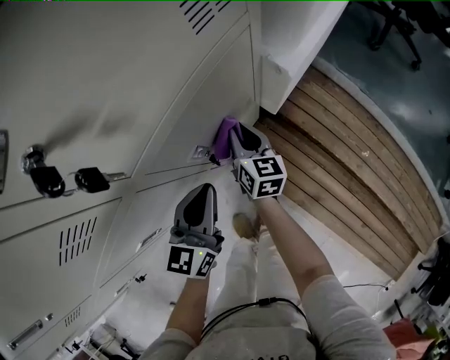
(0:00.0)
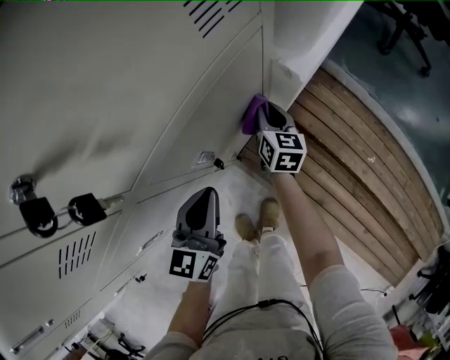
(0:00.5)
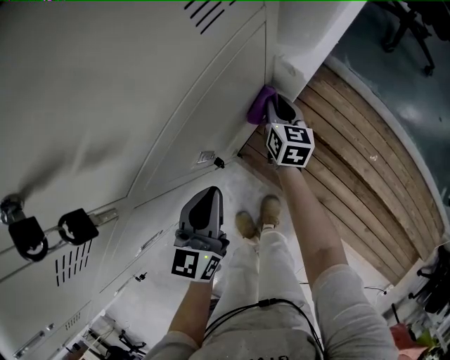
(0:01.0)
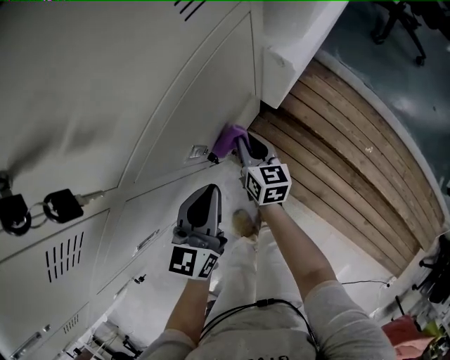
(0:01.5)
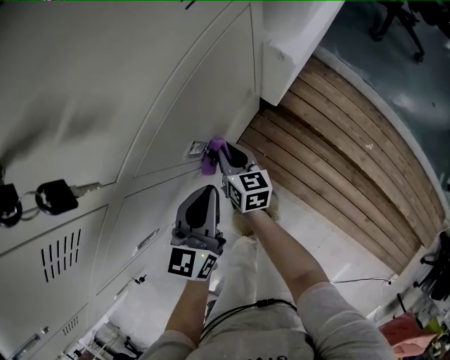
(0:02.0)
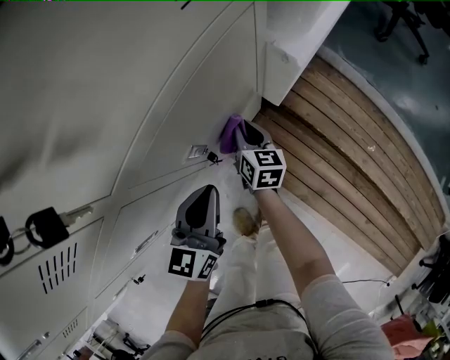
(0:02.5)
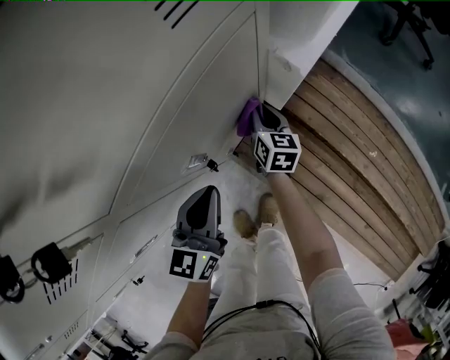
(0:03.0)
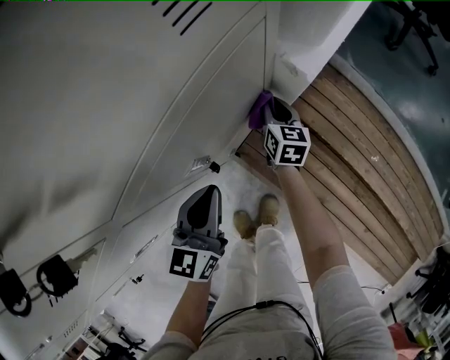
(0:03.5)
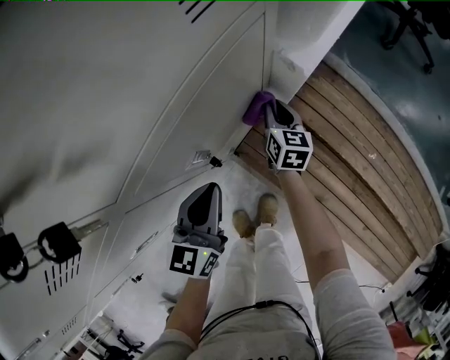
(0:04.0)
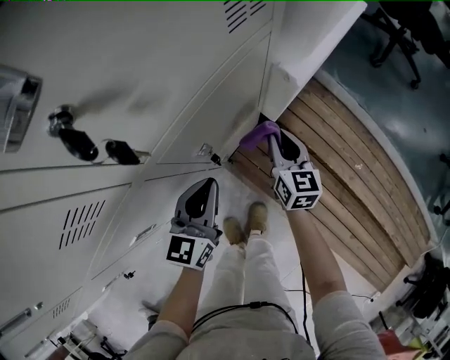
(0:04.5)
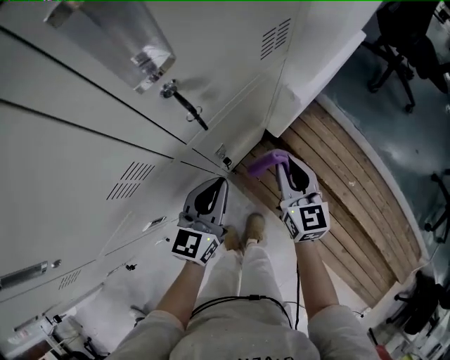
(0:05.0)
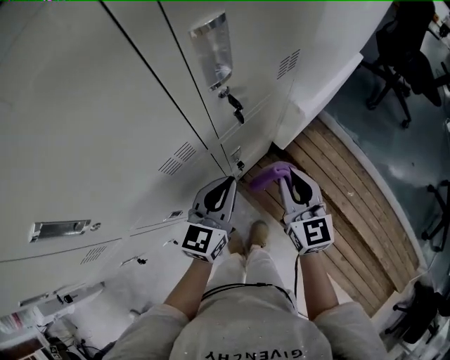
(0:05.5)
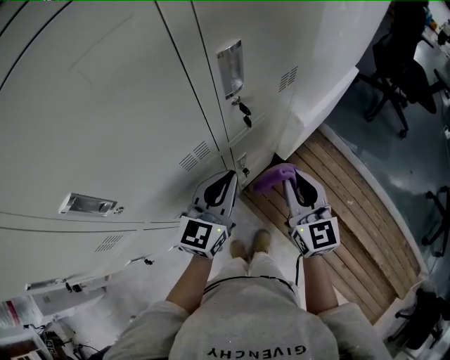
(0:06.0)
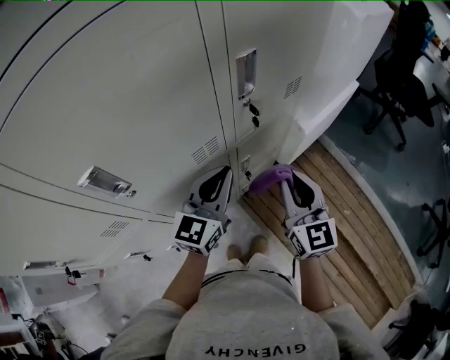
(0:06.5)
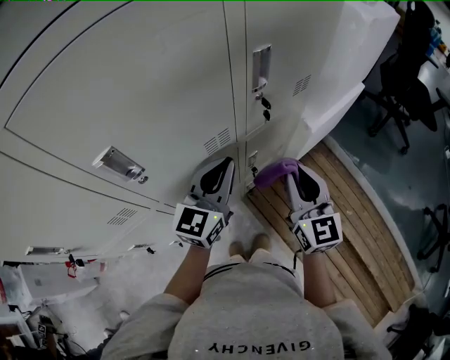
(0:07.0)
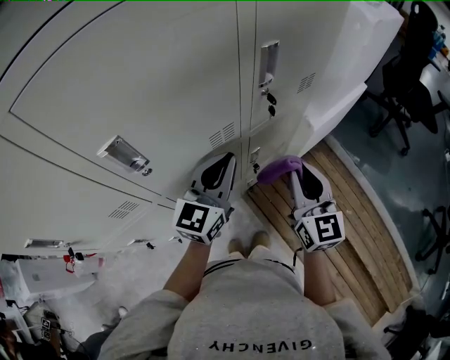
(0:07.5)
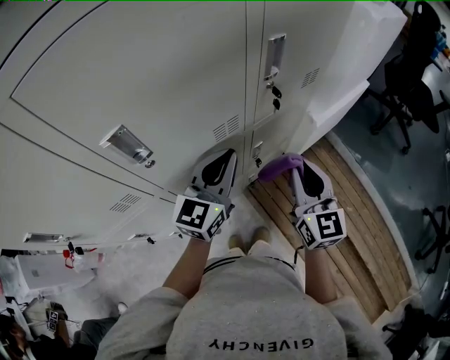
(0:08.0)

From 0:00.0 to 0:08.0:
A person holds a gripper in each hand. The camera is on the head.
From 0:00.0 to 0:02.0: The right gripper goes approximately 10 cm downward and backward.
From 0:02.0 to 0:04.0: The right gripper heads to the right and forward, covering roughly 20 cm.
From 0:04.0 to 0:06.0: The left gripper goes some 25 cm upward, while the right gripper is displaced upward and backward by roughly 50 cm, and turns by about 40 degrees.
From 0:06.0 to 0:08.0: The left gripper is displaced to the left and upward by about 10 cm; the right gripper moves roughly 5 cm.

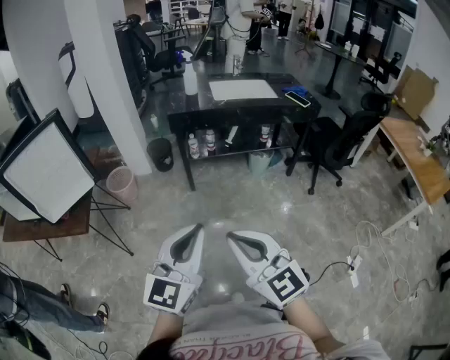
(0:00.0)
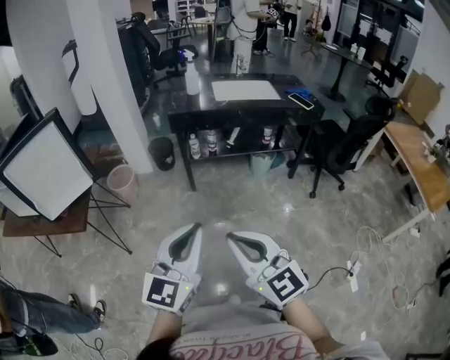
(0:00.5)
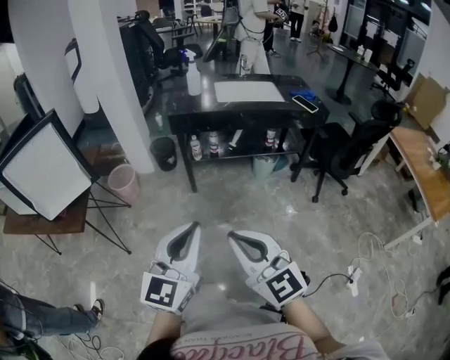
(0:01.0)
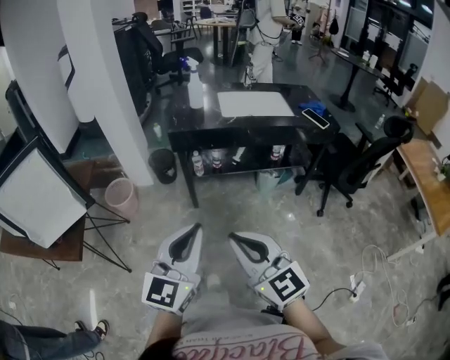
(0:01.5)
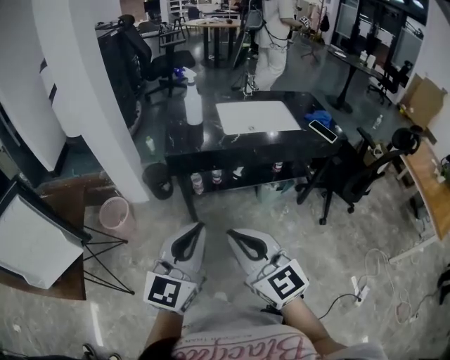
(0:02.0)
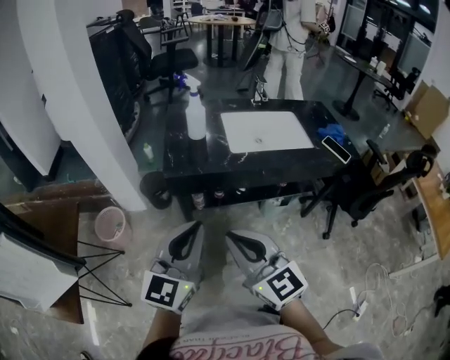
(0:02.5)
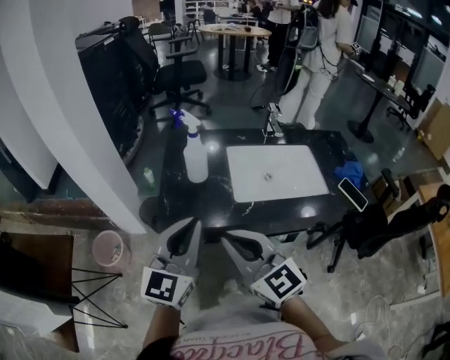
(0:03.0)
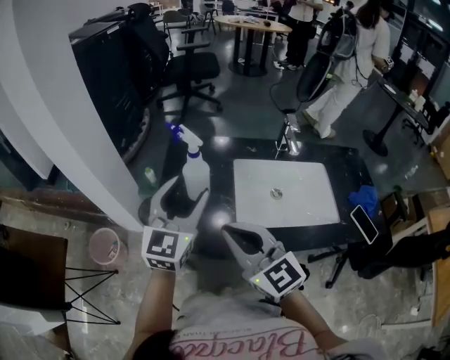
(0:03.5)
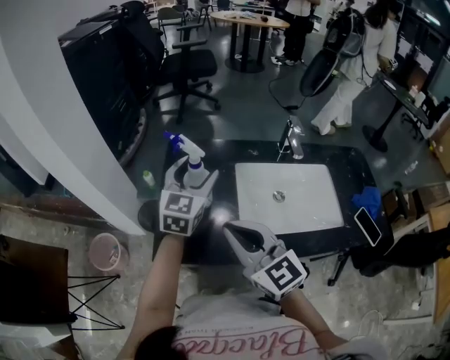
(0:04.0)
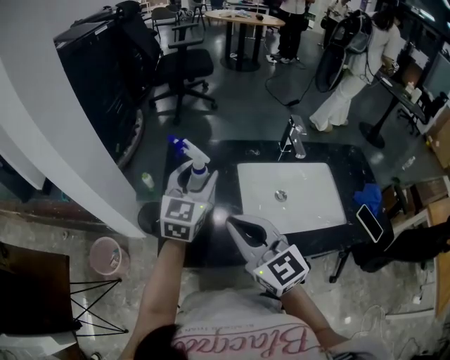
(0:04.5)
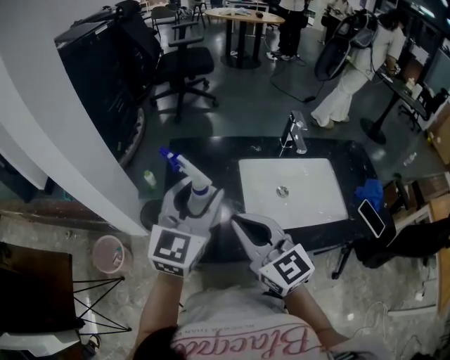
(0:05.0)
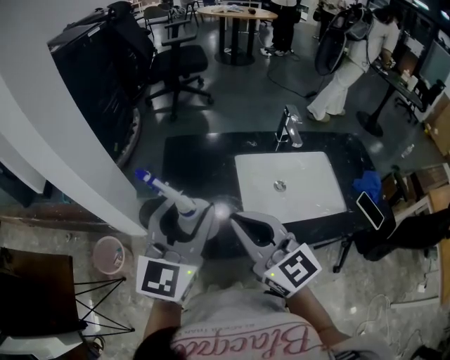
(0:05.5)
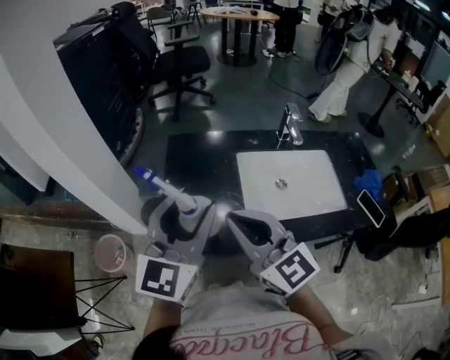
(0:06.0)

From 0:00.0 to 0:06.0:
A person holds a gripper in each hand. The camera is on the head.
From 0:00.0 to 0:02.0: The two grippers go some 30 cm forward.
From 0:02.0 to 0:04.0: The two grippers travel together, forward, about 50 cm. The left gripper opens its fingers.
From 0:04.0 to 0:06.0: The left gripper is displaced backward and upward by roughly 20 cm. The right gripper shifts by about 5 cm.

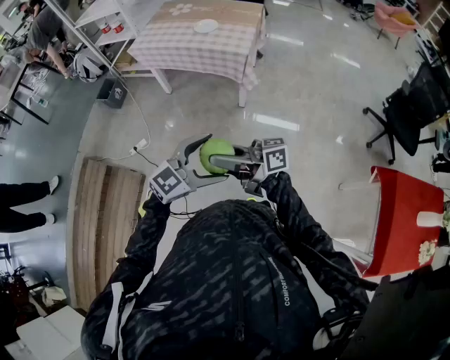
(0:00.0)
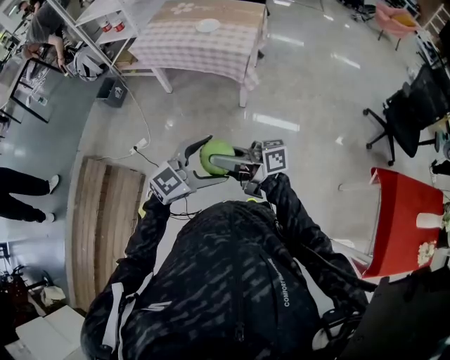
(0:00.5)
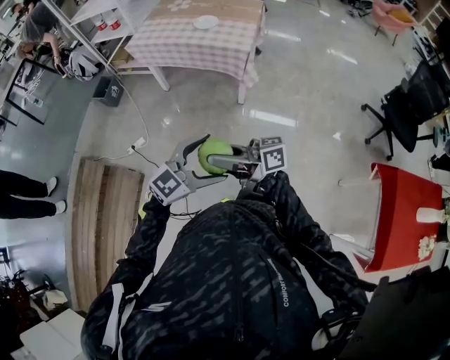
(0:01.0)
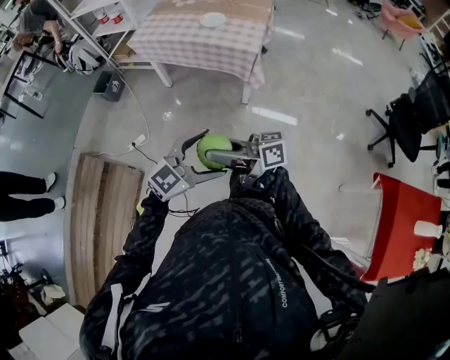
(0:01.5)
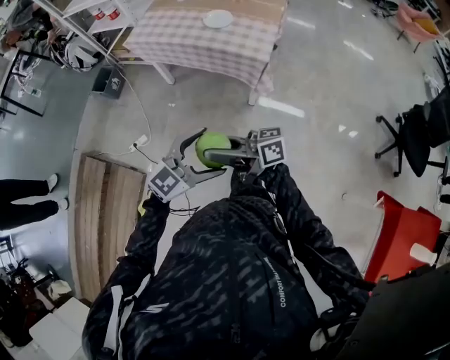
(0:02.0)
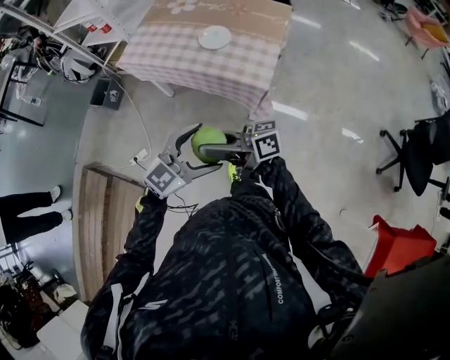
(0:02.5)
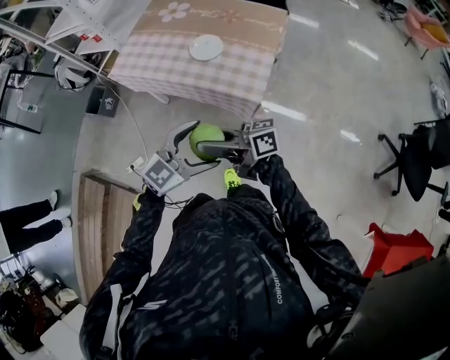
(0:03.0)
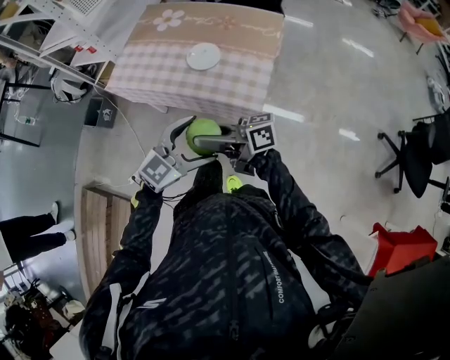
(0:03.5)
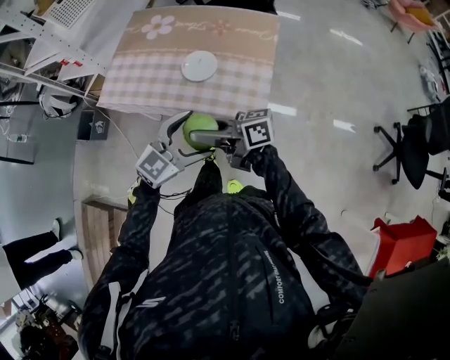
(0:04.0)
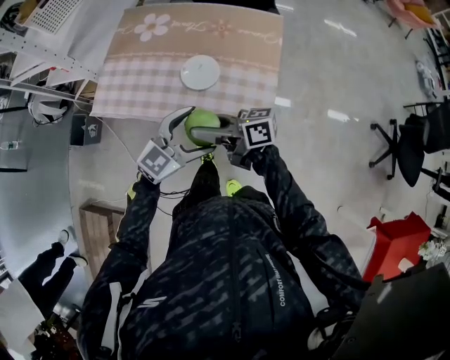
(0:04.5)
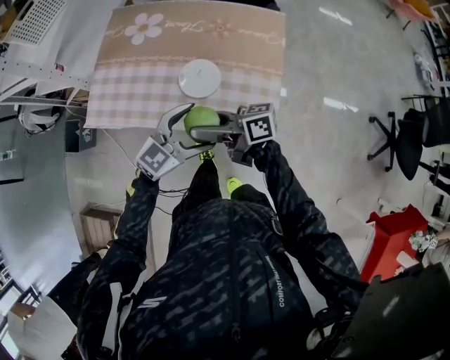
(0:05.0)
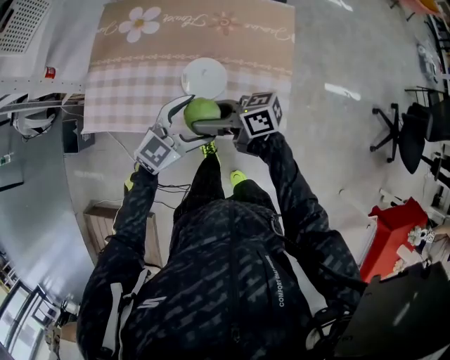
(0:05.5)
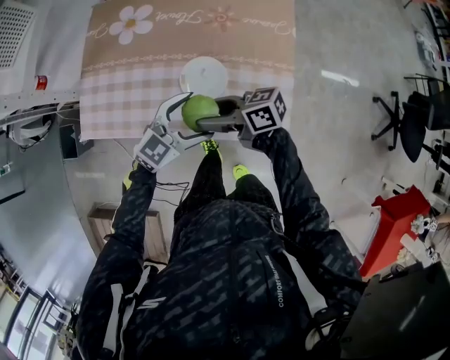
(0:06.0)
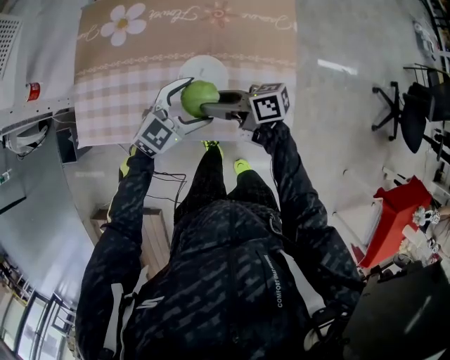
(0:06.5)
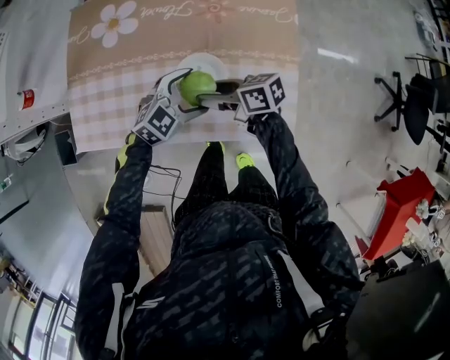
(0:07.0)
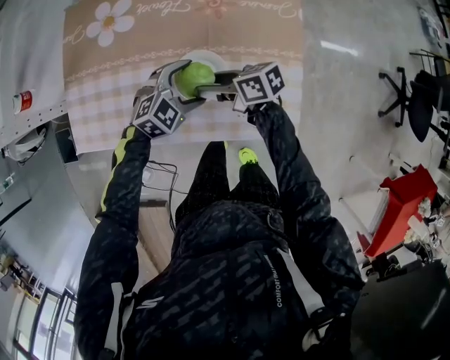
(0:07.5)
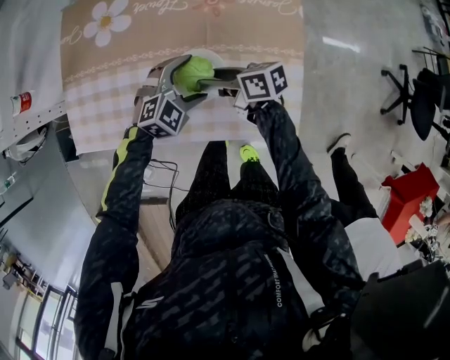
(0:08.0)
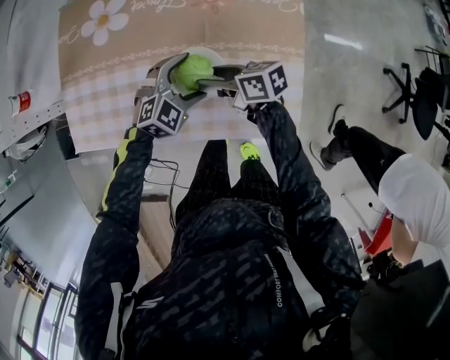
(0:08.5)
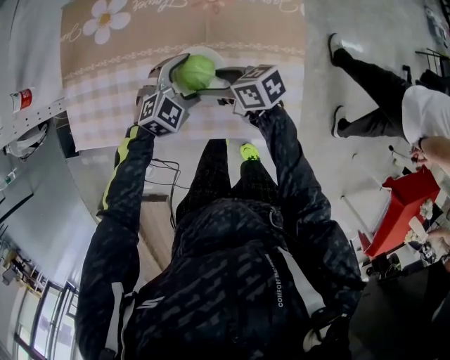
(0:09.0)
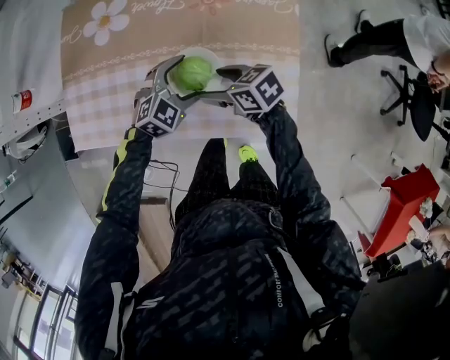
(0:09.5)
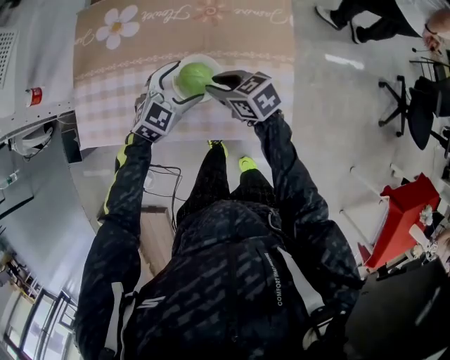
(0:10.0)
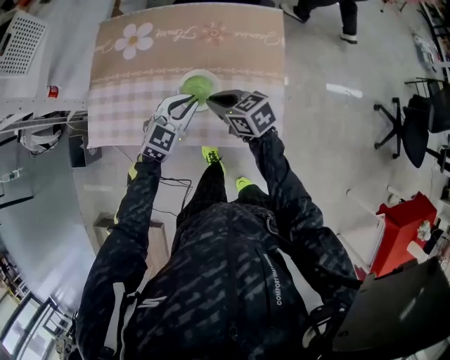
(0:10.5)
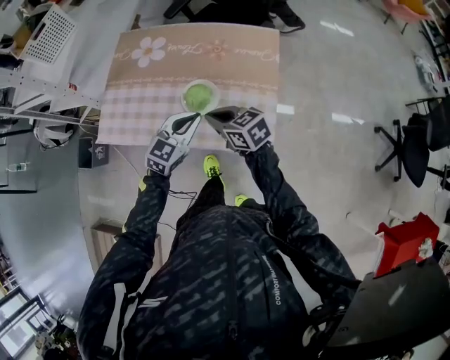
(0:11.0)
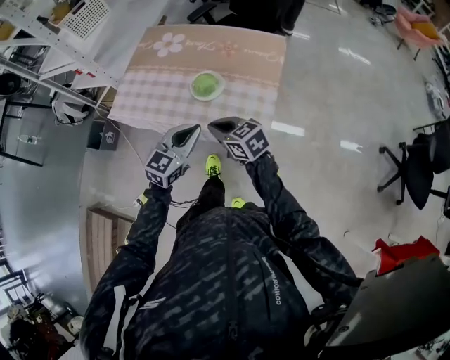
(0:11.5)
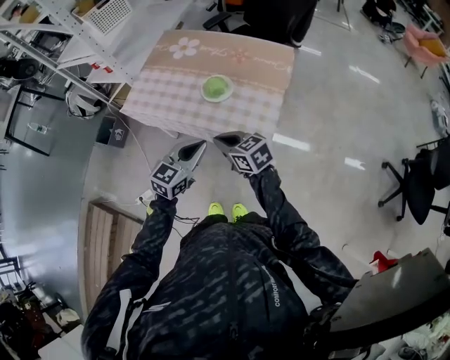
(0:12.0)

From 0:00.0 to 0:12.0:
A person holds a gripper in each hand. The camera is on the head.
From 0:00.0 to 0:02.0: The left gripper changes place by some 20 cm, while the right gripper shifts by some 20 cm.
From 0:02.0 to 0:04.0: The right gripper ends up approximately 40 cm from where it was. The left gripper moves roughly 40 cm.
From 0:04.0 to 0:06.0: The right gripper changes place by roughly 25 cm, and swivels approximately 20 degrees; the left gripper shifts by roughly 25 cm.
From 0:06.0 to 0:08.0: The grippers both shift downward by roughly 10 cm. The left gripper rotates some 30 degrees, while the right gripper turns by some 20 degrees.
From 0:08.0 to 0:10.0: The right gripper rotates roughly 30 degrees, and closes its fingers; the left gripper changes place by about 5 cm.
From 0:10.0 to 0:12.0: The grippers both shift backward and upward by approximately 35 cm. The right gripper rotates approximately 20 degrees, while the left gripper swivels some 40 degrees, and closes its fingers.

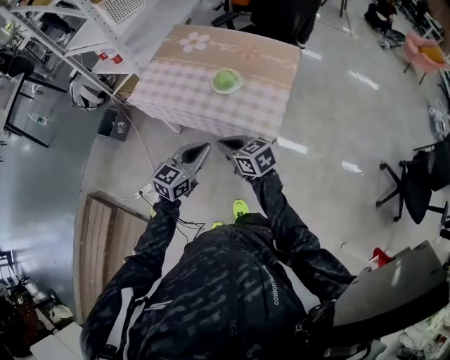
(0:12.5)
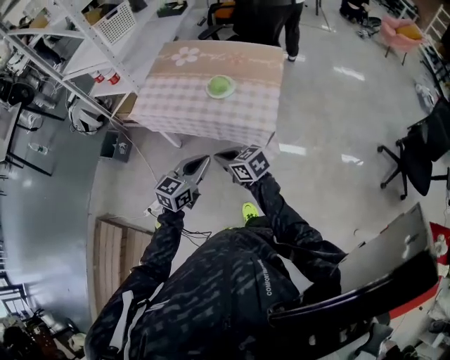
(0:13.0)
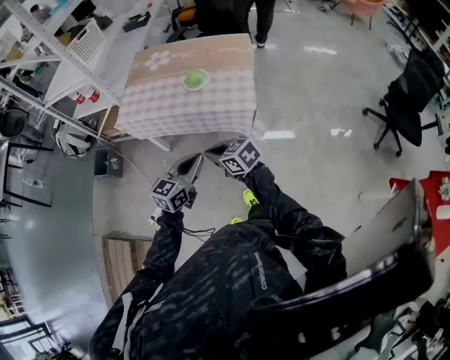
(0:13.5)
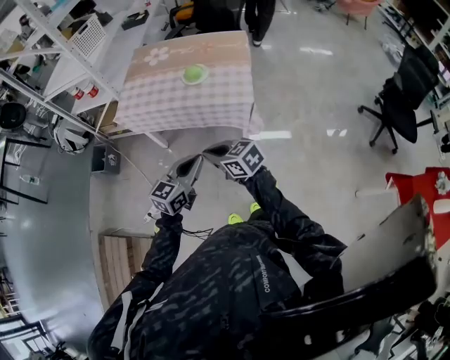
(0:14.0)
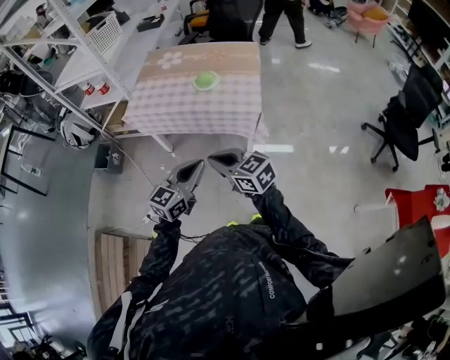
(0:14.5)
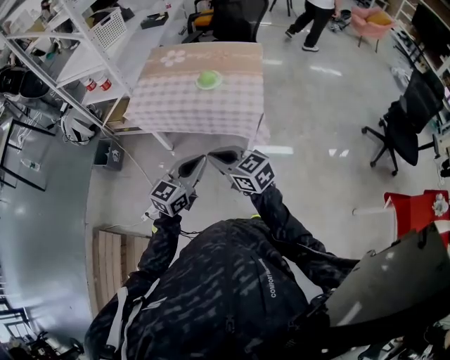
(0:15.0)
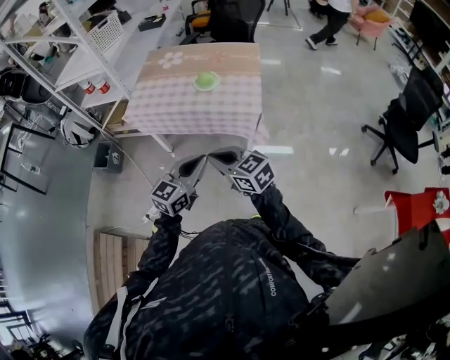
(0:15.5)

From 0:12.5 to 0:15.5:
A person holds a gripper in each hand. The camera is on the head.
From 0:12.5 to 0:14.0: Both grippers move backward, roughly 20 cm.
From 0:14.0 to 0:15.5: The right gripper goes roughly 5 cm upward.
